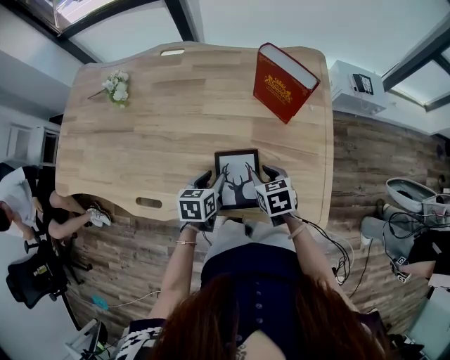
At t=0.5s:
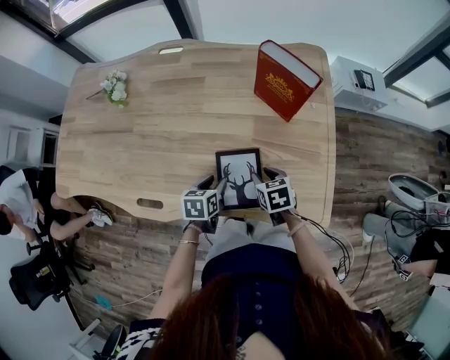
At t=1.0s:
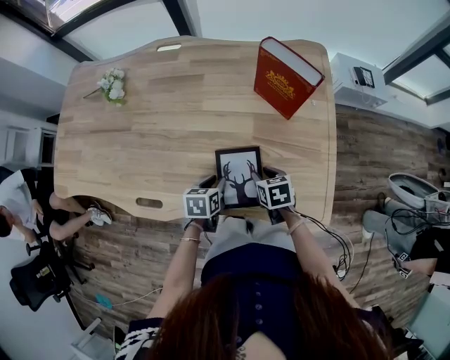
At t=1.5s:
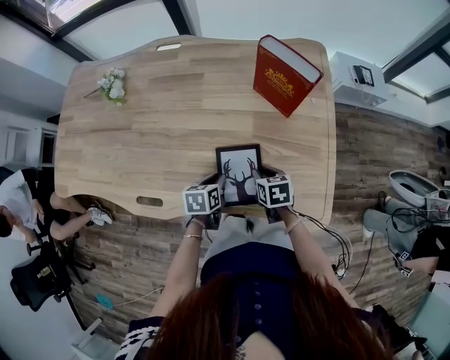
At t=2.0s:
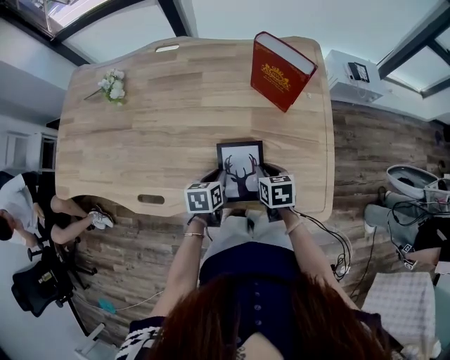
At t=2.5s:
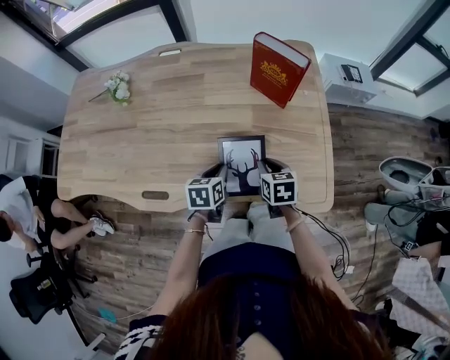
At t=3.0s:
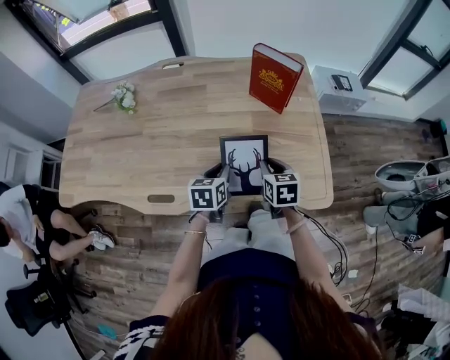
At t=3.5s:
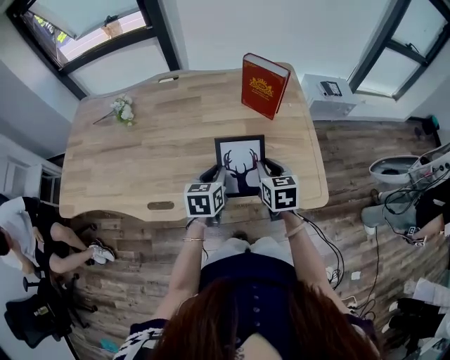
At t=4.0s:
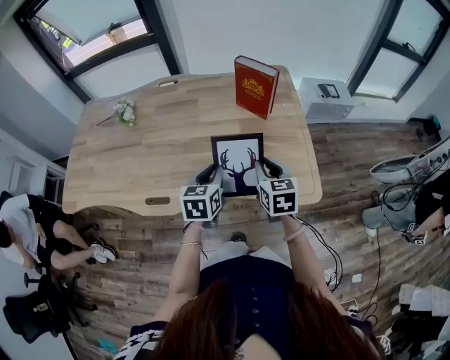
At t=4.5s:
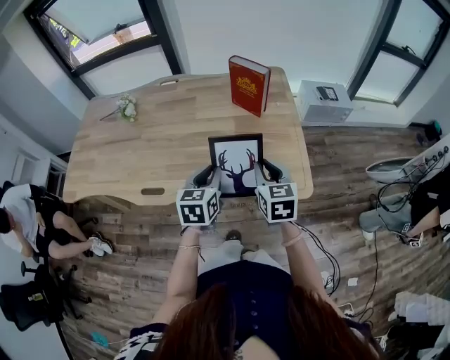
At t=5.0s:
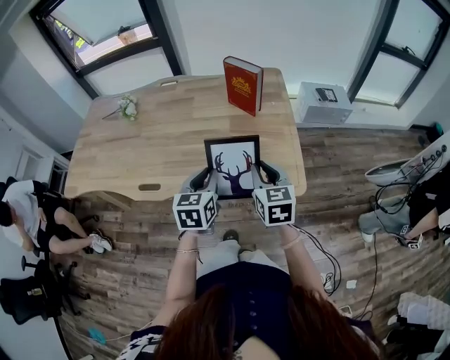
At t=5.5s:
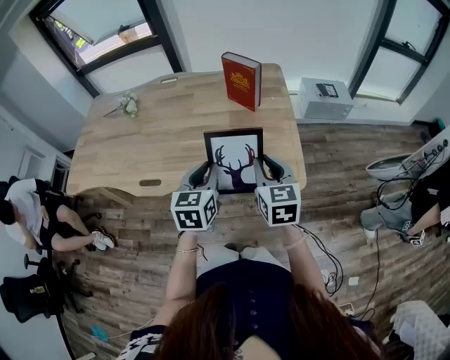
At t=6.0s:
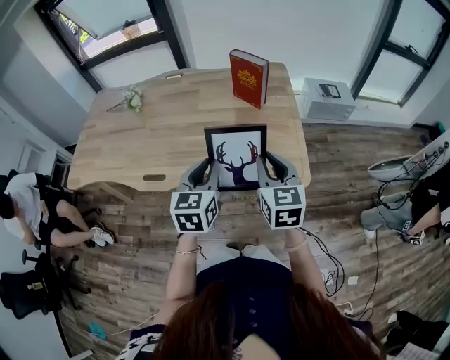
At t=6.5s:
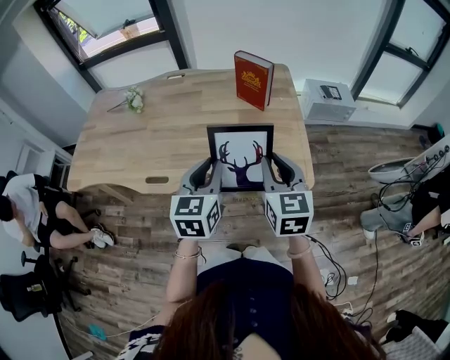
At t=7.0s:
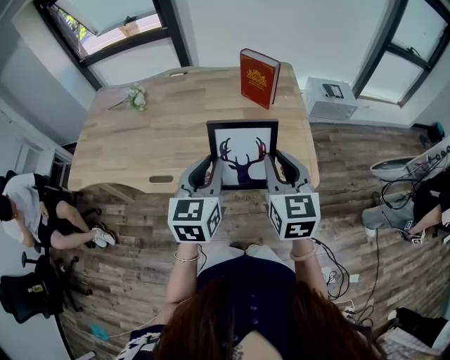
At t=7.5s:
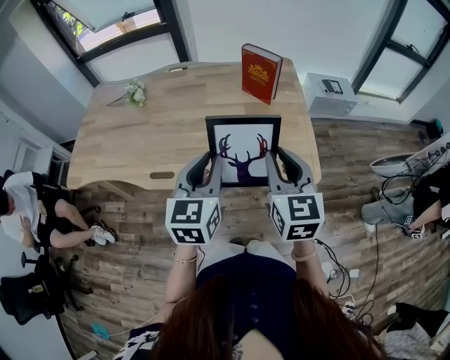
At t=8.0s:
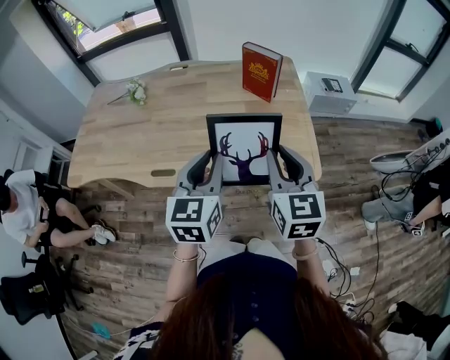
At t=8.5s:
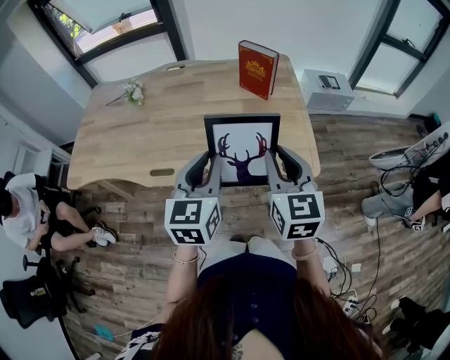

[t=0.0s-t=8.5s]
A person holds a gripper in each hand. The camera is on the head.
t=0.0s to t=2.0s: The grippers move only a little.
t=2.0s to t=4.0s: The left gripper is displaced upward by about 15 cm, and swivels about 30 degrees; the right gripper moves upward and backward, approximately 20 cm, and rotates roughly 30 degrees.
t=4.0s to t=6.5s: The grippers both shift upward and backward by some 15 cm.
t=6.5s to t=8.5s: The right gripper ends up roughly 5 cm from where it was, while the left gripper moves some 5 cm.

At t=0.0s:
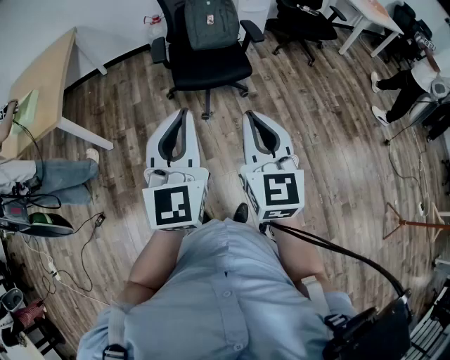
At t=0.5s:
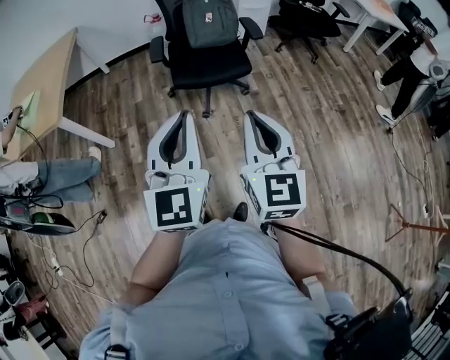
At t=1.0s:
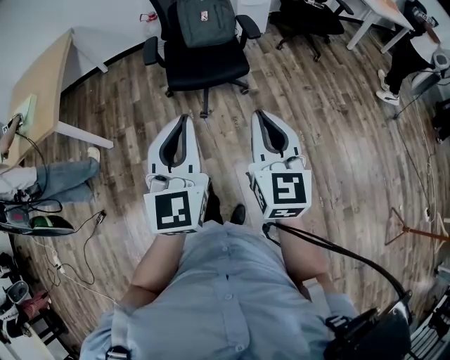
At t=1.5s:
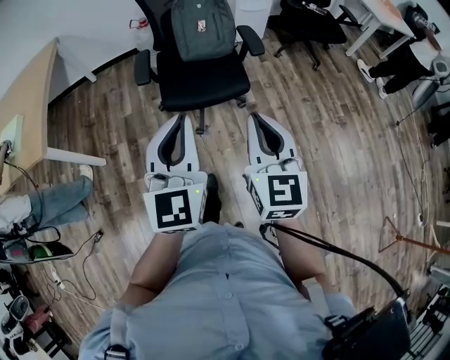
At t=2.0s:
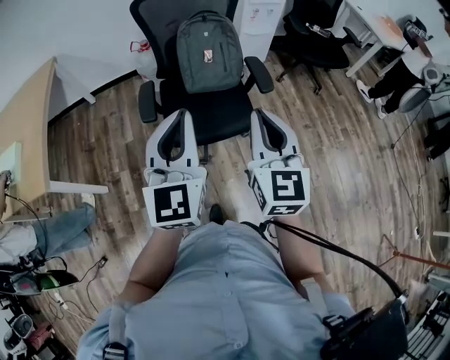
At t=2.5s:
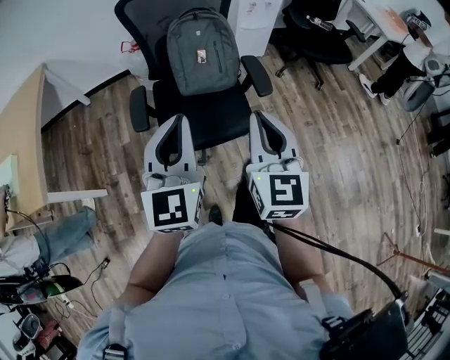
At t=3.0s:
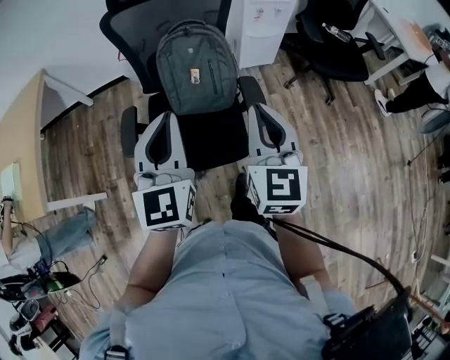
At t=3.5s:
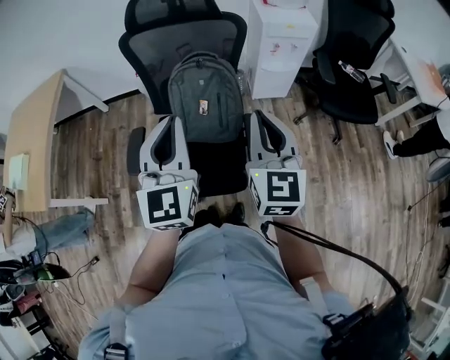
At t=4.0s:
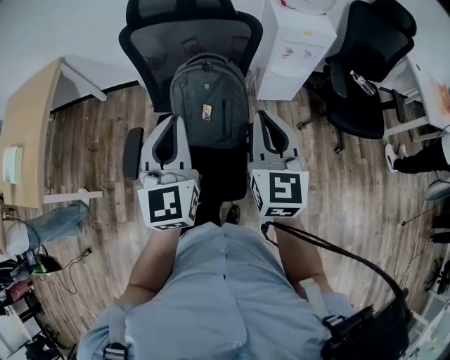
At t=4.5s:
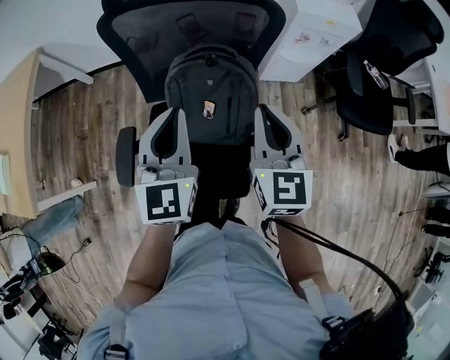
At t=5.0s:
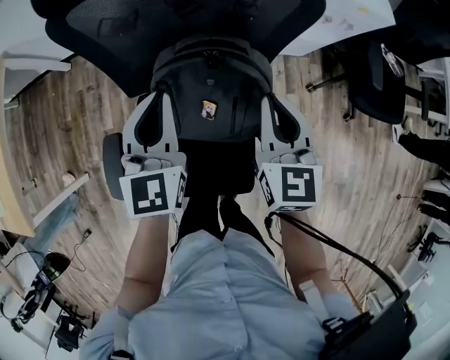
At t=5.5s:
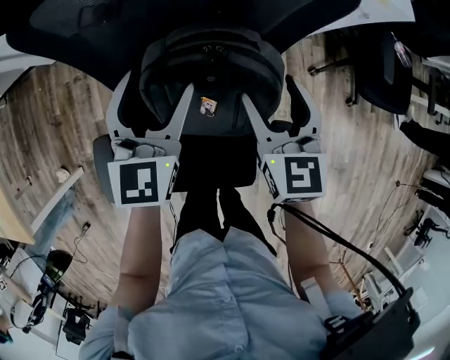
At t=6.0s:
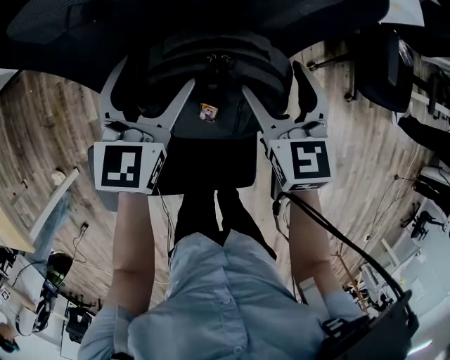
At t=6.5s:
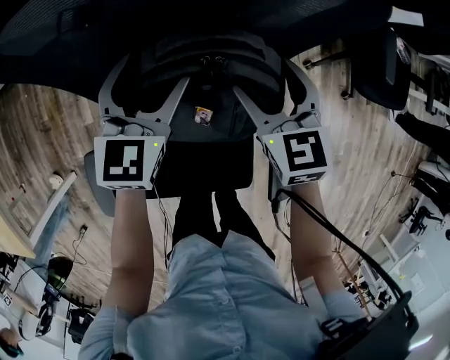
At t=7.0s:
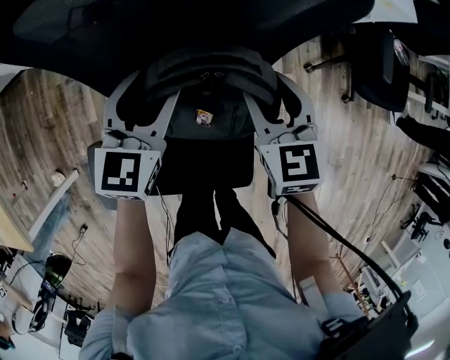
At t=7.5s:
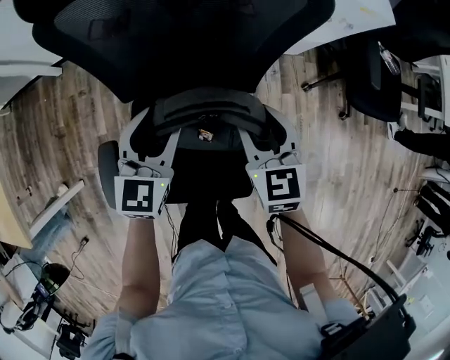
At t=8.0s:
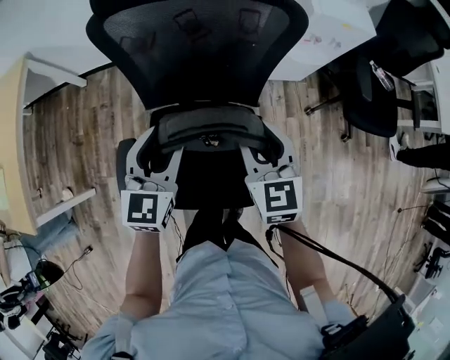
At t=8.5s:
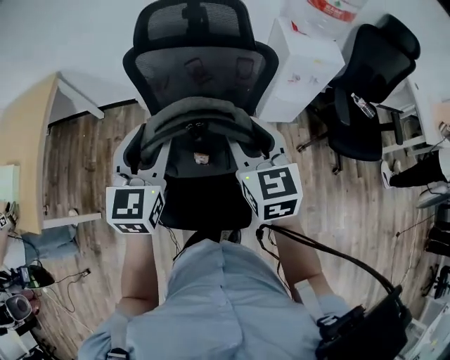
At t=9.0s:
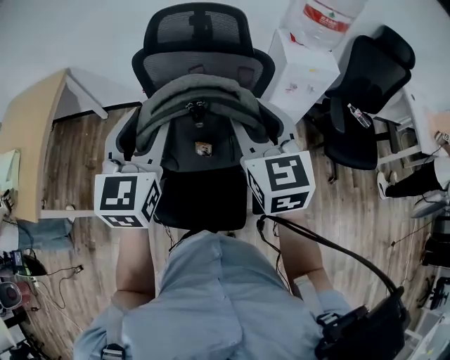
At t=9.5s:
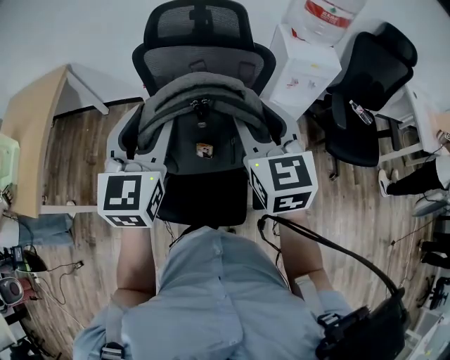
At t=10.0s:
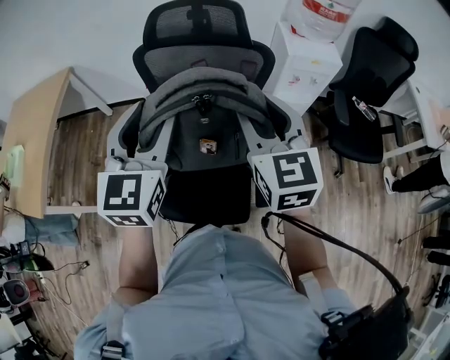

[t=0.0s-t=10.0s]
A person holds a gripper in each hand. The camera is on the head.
t=0.0s to t=2.0s: Both grippers move forward, about 35 cm.
t=2.0s to t=4.0s: Both grippers move forward, about 35 cm.
t=4.0s to t=6.0s: Both grippers move forward and downward, some 35 cm. The left gripper rotates roughly 30 degrees, and opens up, while the right gripper turns by some 20 degrees, and opens.
t=6.0s to t=8.0s: Both grippers travel together backward and upward, some 20 cm. The left gripper closes up. The right gripper closes.
t=8.0s to t=10.0s: Both grippers move upward, roughly 20 cm.

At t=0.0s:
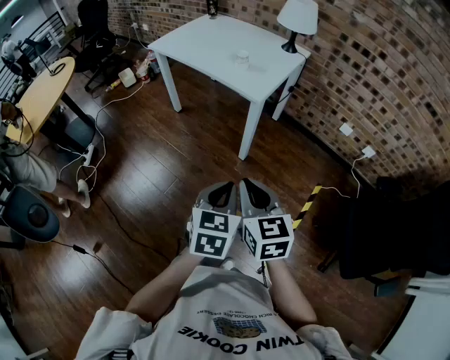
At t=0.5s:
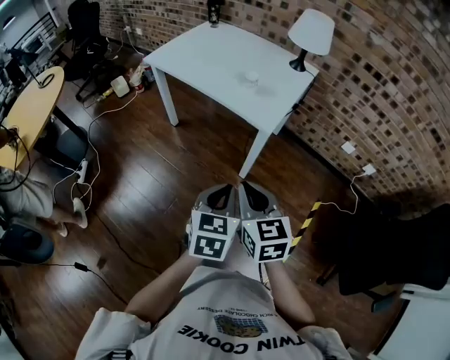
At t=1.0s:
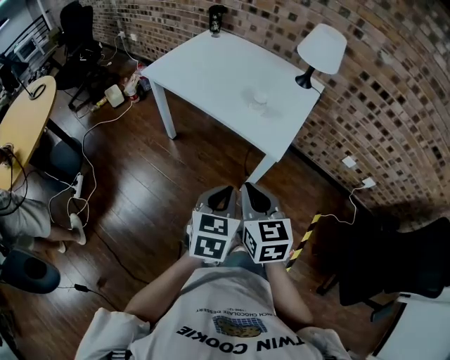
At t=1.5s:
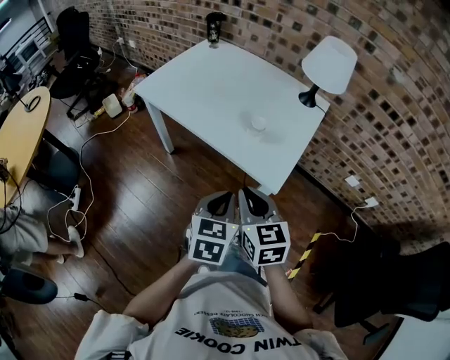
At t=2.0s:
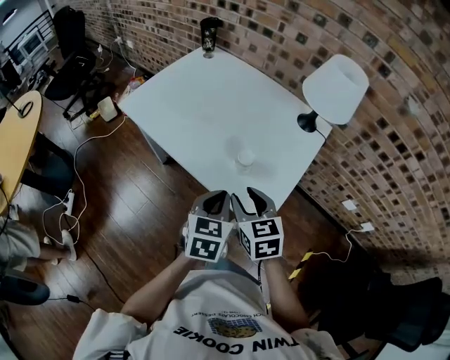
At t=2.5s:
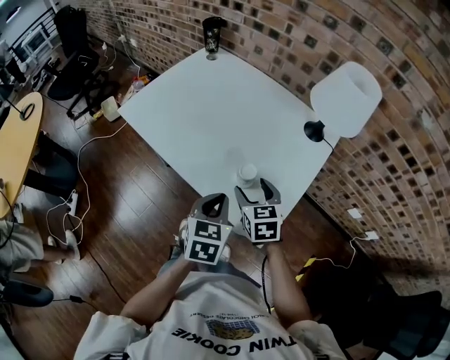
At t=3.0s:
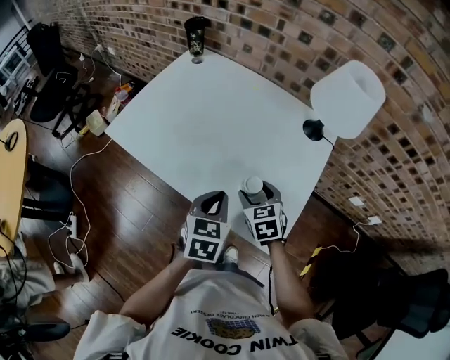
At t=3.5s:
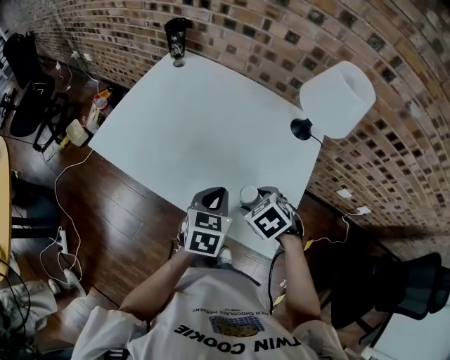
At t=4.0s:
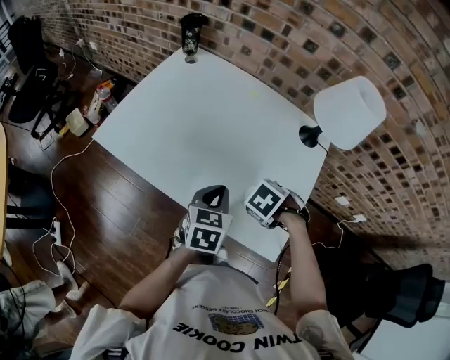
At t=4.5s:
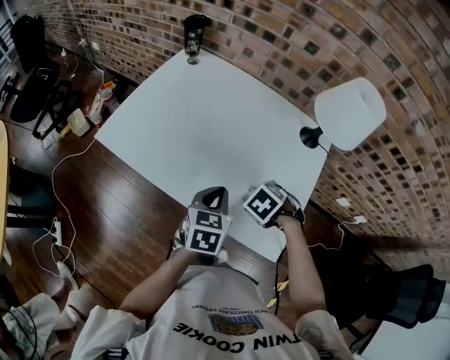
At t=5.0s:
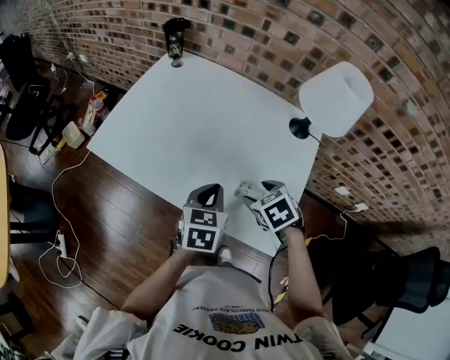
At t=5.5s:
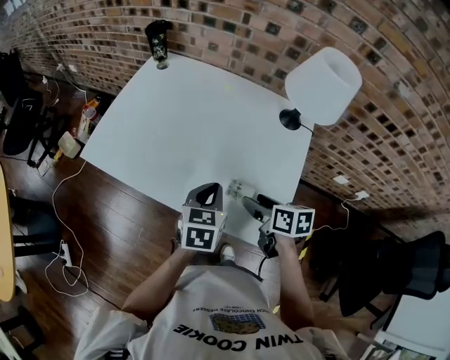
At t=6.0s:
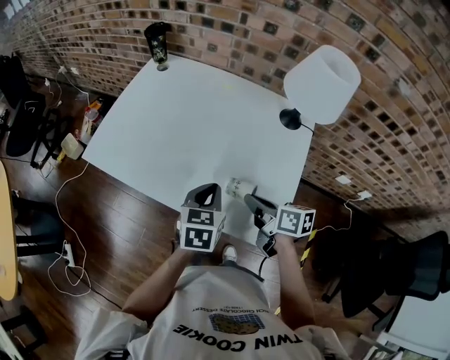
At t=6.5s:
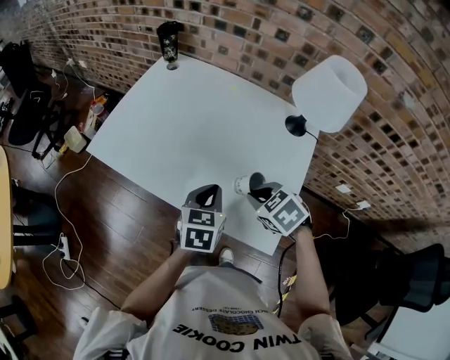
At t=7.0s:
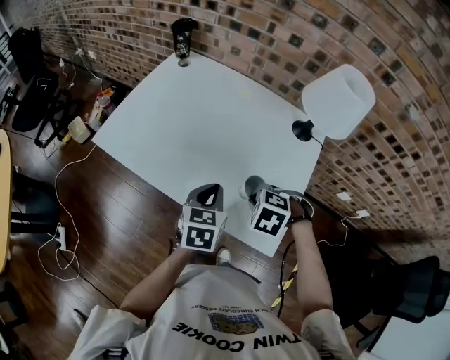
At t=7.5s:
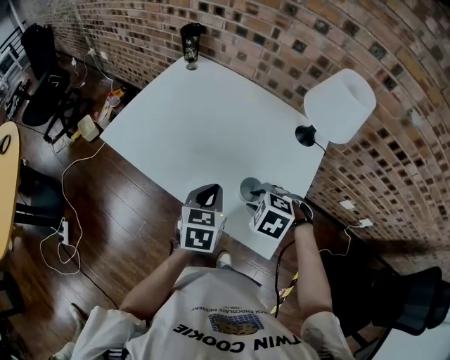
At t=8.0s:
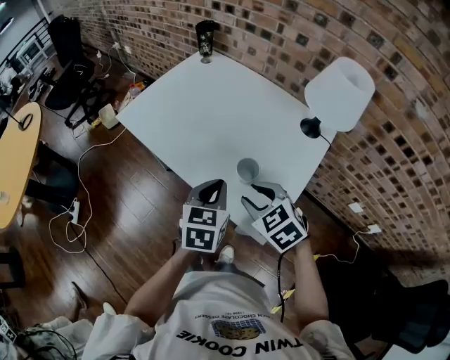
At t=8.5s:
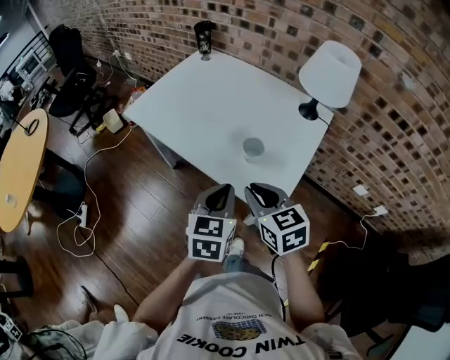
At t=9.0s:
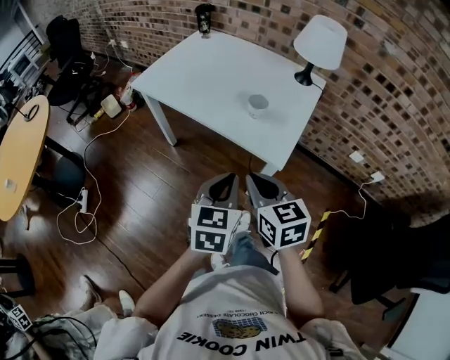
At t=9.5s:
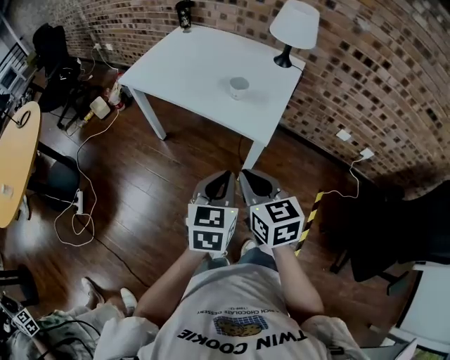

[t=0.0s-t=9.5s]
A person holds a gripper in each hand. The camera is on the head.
t=0.0s to t=2.0s: The two grippers travel together, forward, some 50 cm. The right gripper opens its fingers.
t=2.0s to t=4.0s: The right gripper changes place by about 15 cm, tilts its fingers approximately 60 degrees downward, and opens up, while the left gripper changes place by roughly 20 cm.
t=4.0s to t=5.5s: The right gripper shifts by approximately 5 cm, and tilts its fingers approximately 50 degrees upward.
t=5.5s to t=7.5s: The right gripper changes place by approximately 5 cm, twists about 80 degrees counterclockwise, seen from behind, and closes.
t=7.5s to t=9.5s: Both grippers travel together backward, about 35 cm. The right gripper angles its fingers upward, by approximately 50 degrees.
